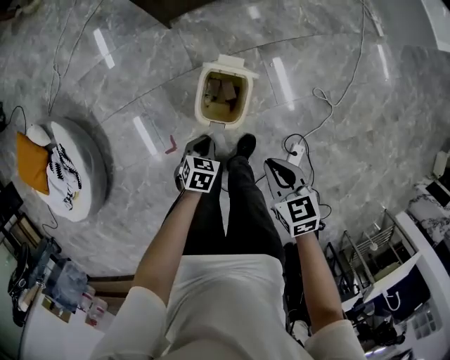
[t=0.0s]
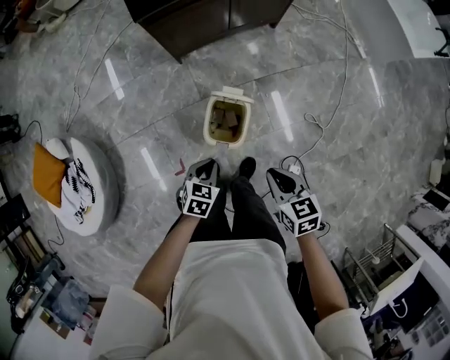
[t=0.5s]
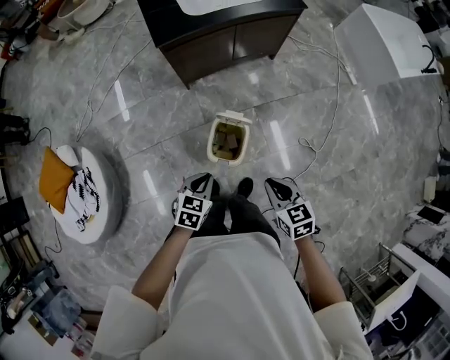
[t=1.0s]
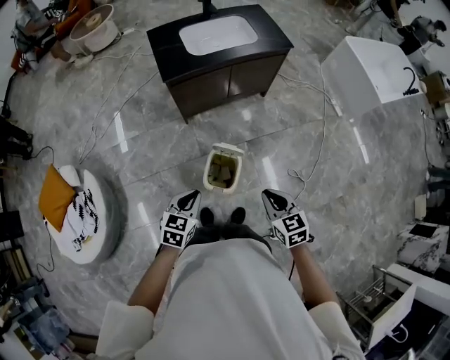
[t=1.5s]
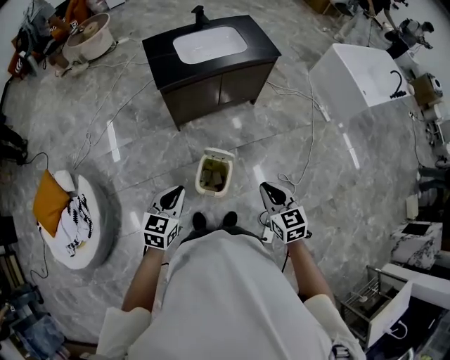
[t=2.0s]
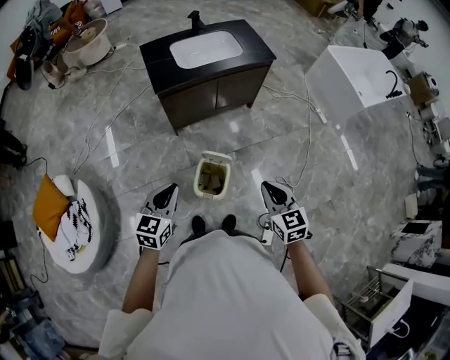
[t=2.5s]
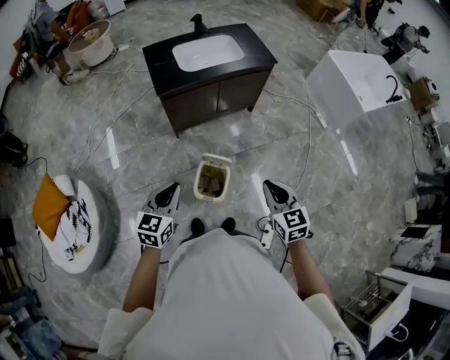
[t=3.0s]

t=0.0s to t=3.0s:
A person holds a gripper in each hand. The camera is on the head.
t=0.0s to t=1.5s: The right gripper shifts about 20 cm upward, while the left gripper goes approximately 35 cm upward, and rotates approximately 30 degrees.
t=1.5s to t=3.0s: Both grippers travel together upward, roughly 10 cm.

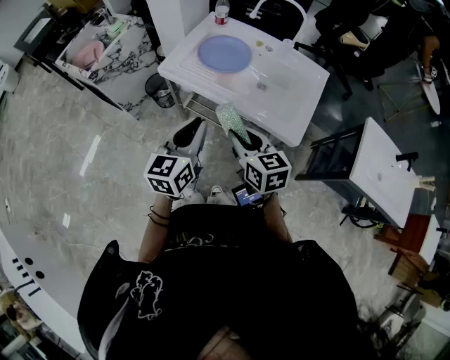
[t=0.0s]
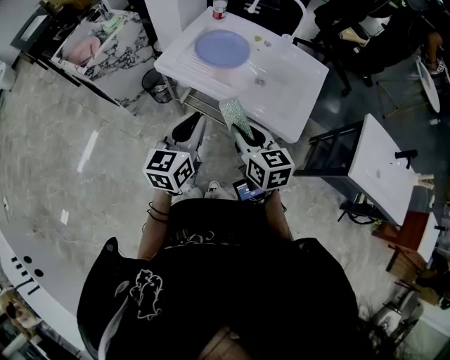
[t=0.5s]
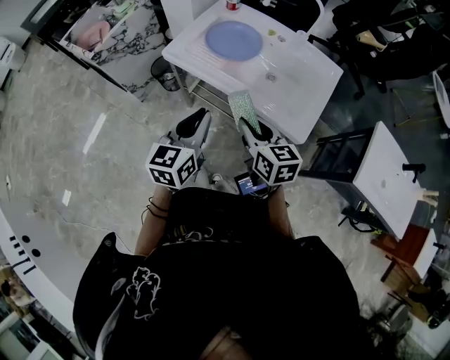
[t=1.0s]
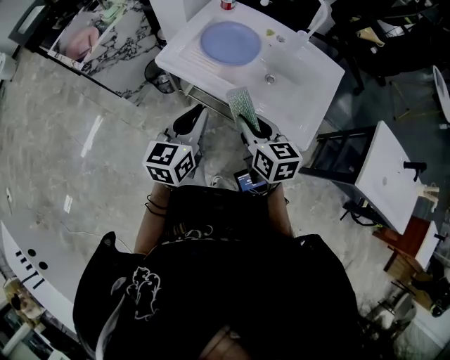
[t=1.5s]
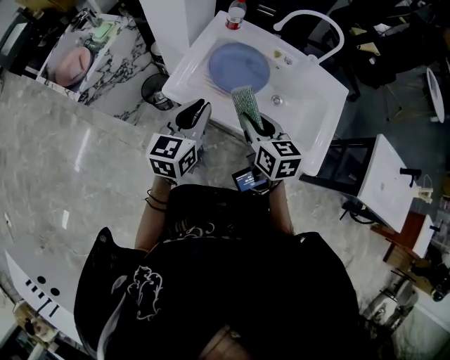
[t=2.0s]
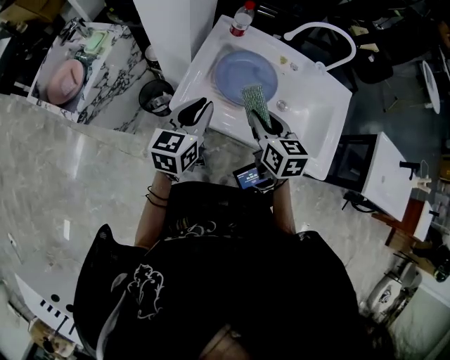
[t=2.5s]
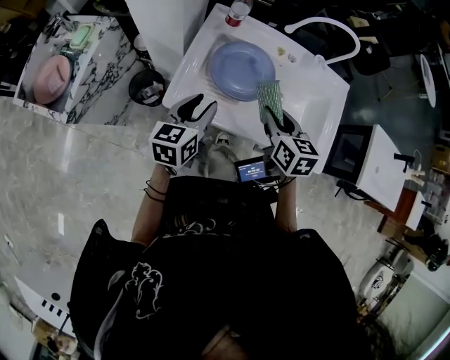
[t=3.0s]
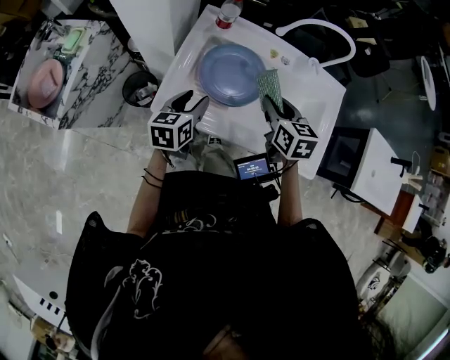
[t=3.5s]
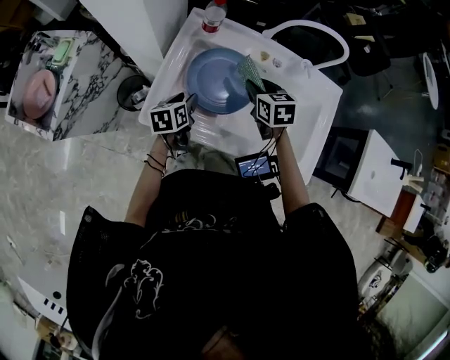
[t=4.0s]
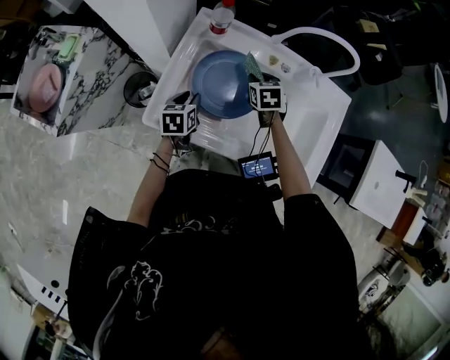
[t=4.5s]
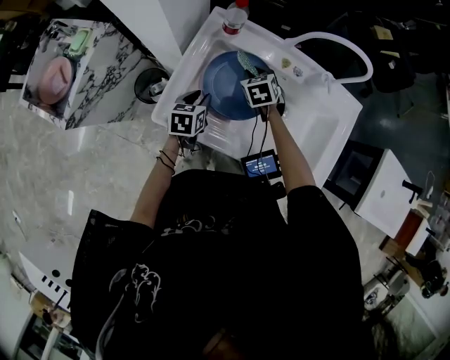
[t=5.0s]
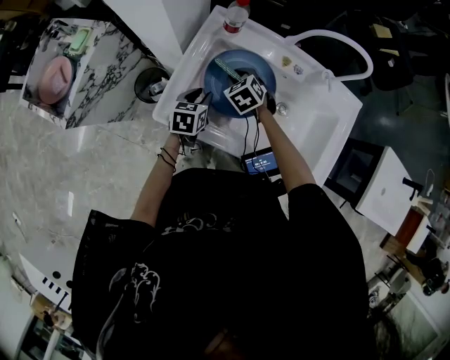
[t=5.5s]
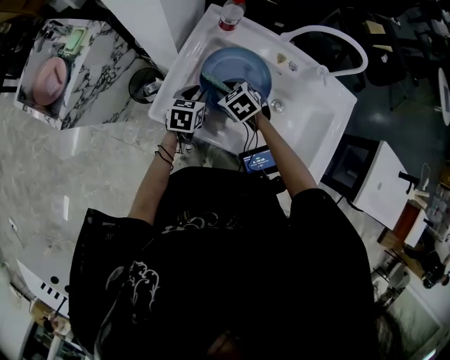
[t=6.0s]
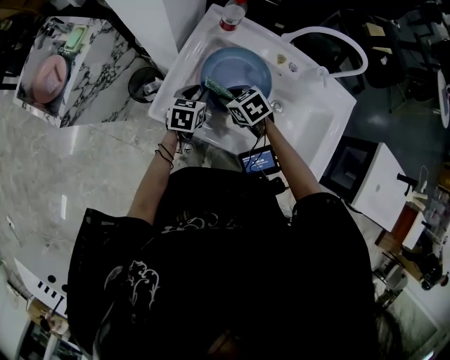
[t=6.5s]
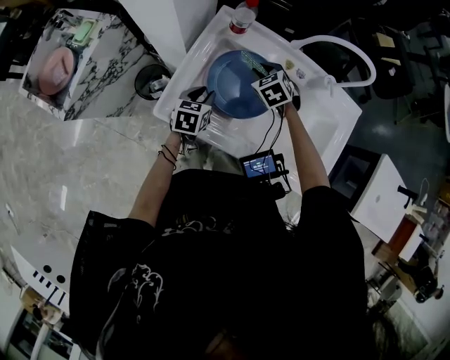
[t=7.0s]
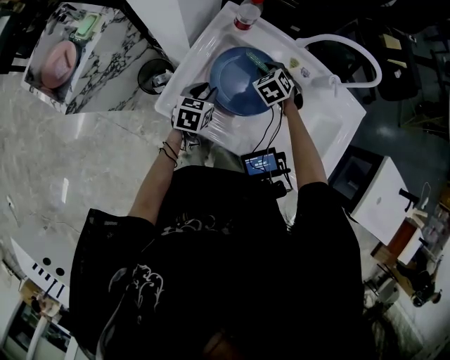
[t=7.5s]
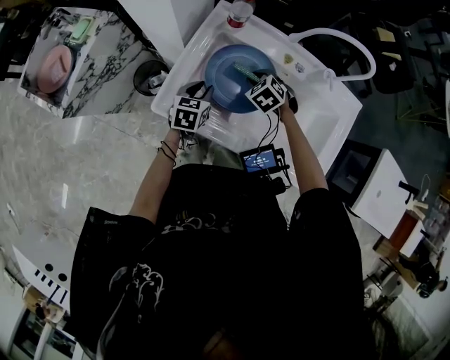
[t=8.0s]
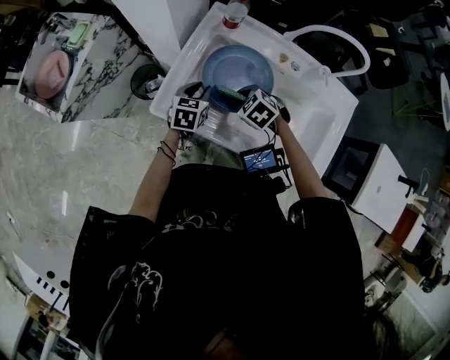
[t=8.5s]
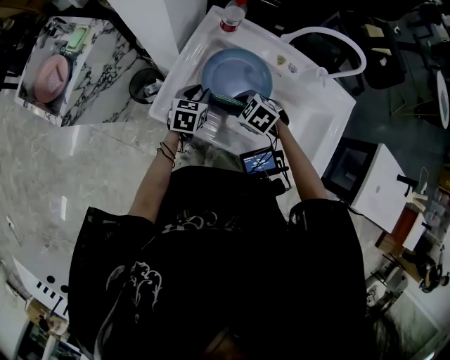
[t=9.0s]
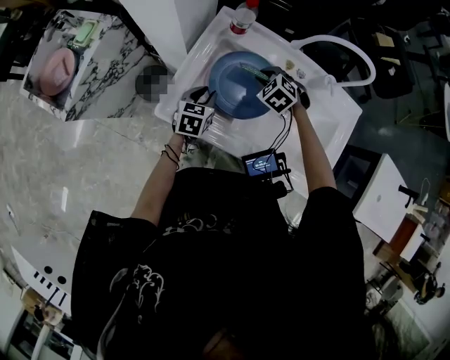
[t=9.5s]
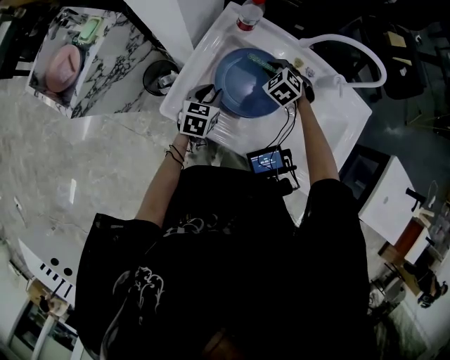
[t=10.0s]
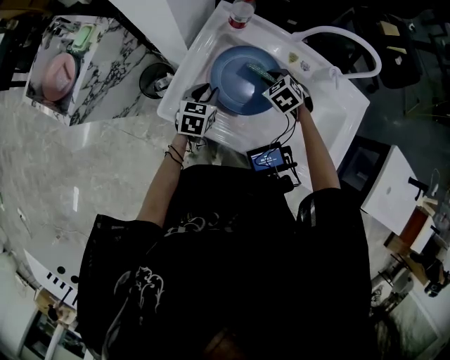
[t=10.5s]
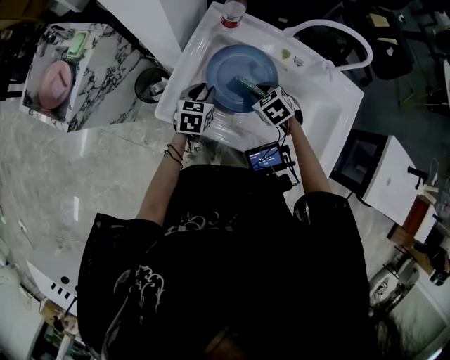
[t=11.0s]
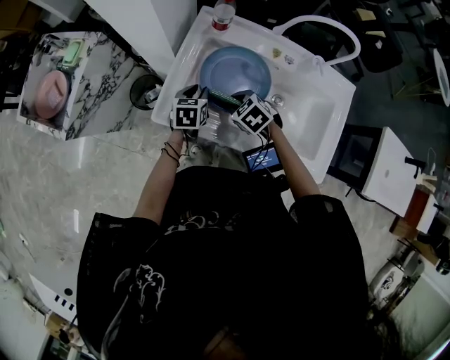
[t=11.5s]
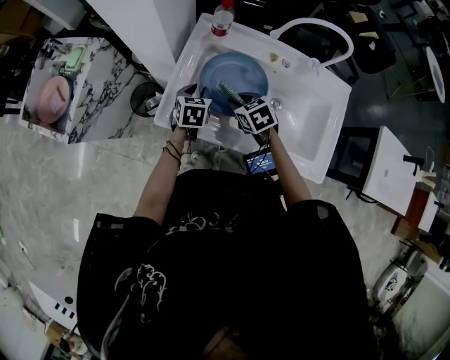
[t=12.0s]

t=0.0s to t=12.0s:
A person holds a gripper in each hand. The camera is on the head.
t=0.0s to t=2.0s: Both grippers move forward, approximately 20 cm.
t=2.0s to t=4.0s: The left gripper shifts some 30 cm downward and forward, rotates roughly 30 degrees, and opens; the right gripper heads forward and downward, covering approximately 25 cm.
t=4.0s to t=6.0s: The right gripper travels to the left and downward by about 15 cm, and turns by some 40 degrees.
t=6.0s to t=8.0s: The right gripper goes approximately 10 cm to the right, and reaches roughly 10 cm forward, then returns.
t=8.0s to t=10.0s: The right gripper heads forward, covering roughly 5 cm.
t=10.0s to t=12.0s: The right gripper moves backward and to the left, about 15 cm, and turns by some 40 degrees.

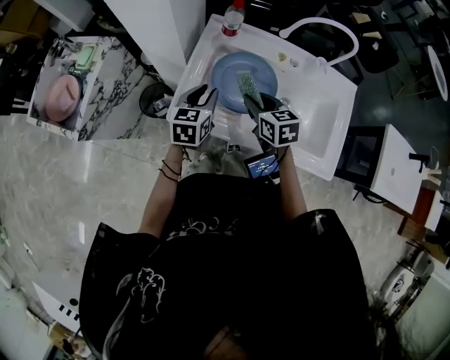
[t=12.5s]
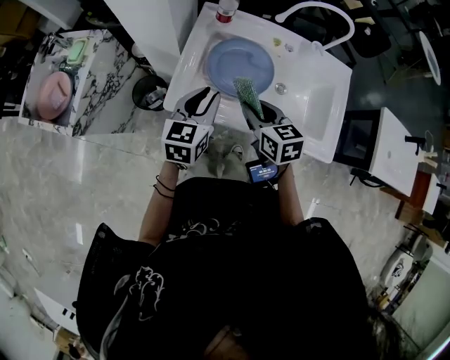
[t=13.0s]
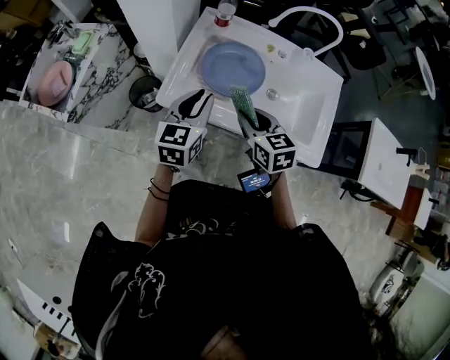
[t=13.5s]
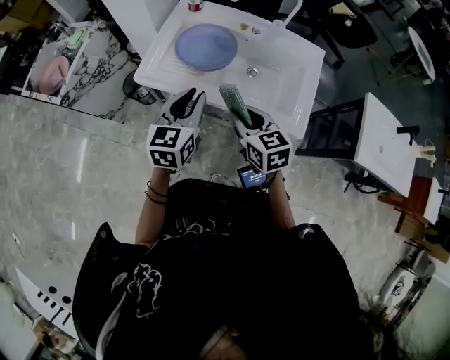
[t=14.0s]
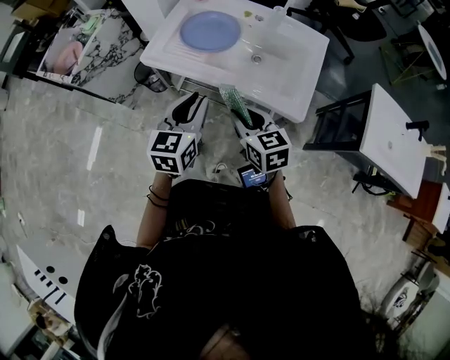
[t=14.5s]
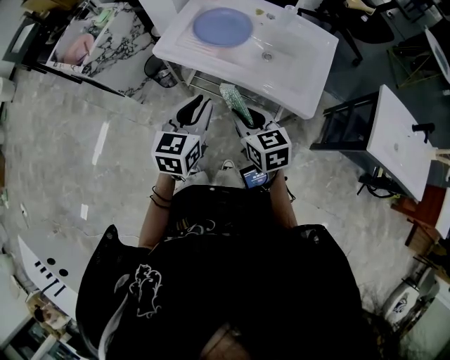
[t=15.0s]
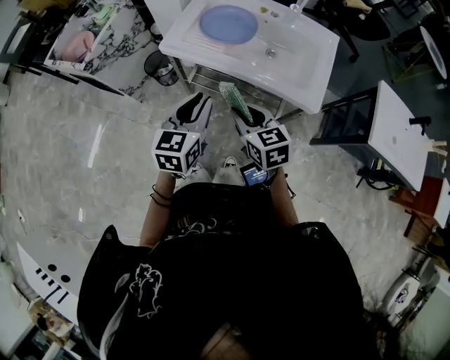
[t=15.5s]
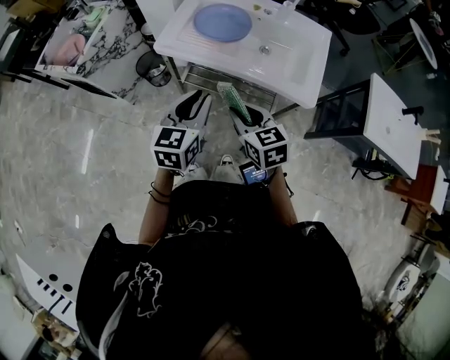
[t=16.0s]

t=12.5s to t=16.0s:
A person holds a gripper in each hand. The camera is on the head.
t=12.5s to t=14.5s: The right gripper heads backward, covering roughly 30 cm; the left gripper is displaced backward and to the right by some 35 cm.
t=14.5s to t=16.0s: Both grippers move to the left, some 10 cm.

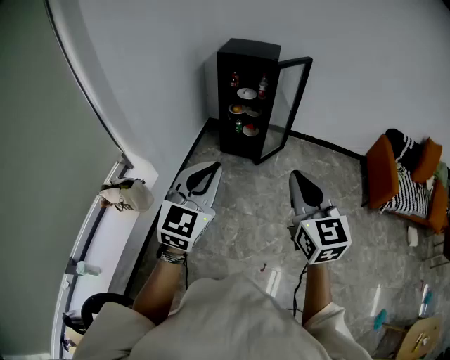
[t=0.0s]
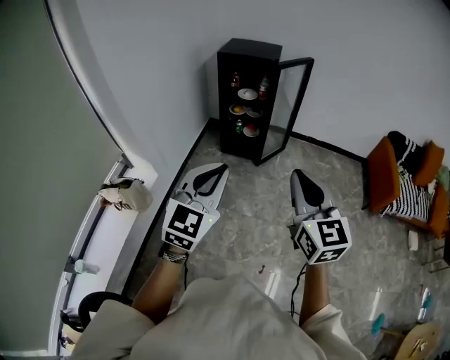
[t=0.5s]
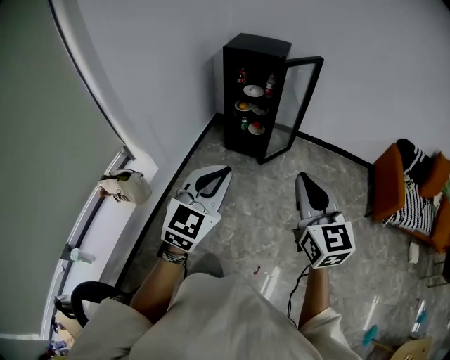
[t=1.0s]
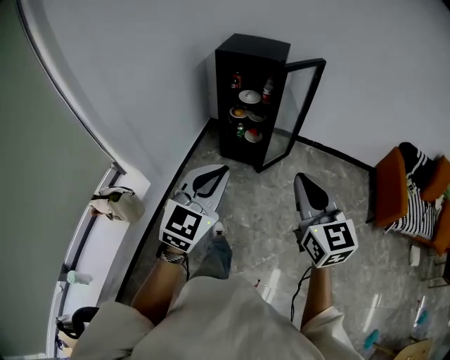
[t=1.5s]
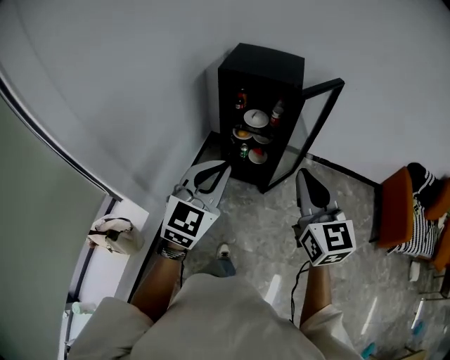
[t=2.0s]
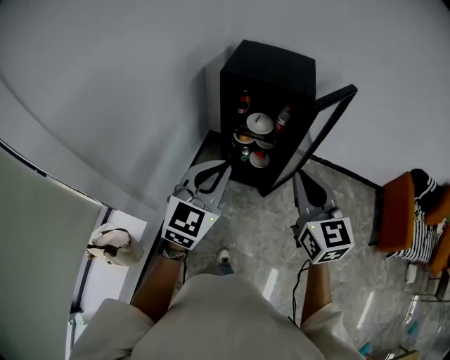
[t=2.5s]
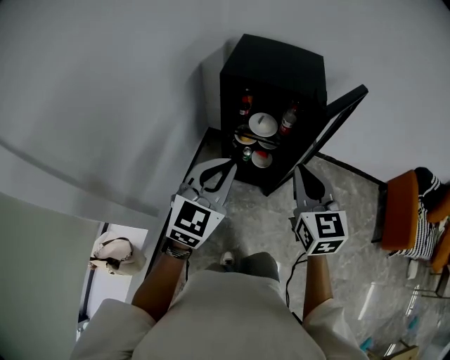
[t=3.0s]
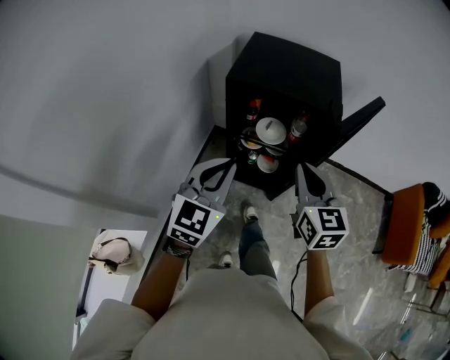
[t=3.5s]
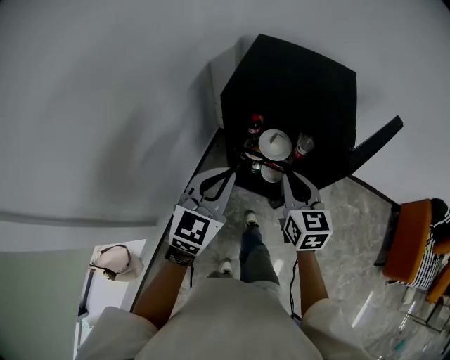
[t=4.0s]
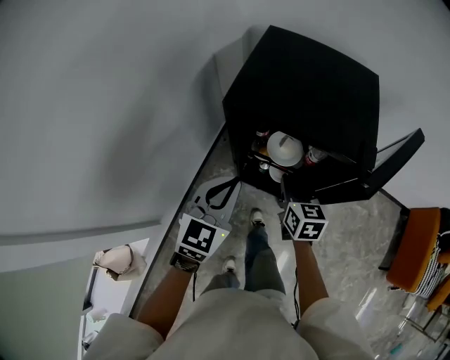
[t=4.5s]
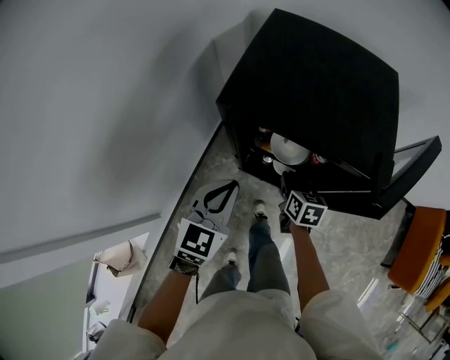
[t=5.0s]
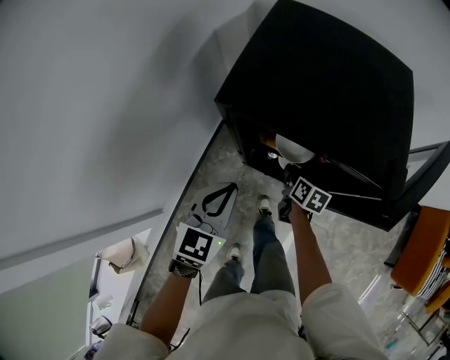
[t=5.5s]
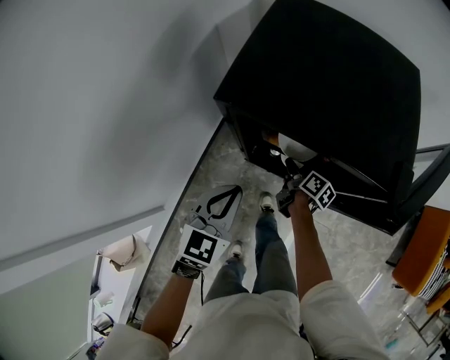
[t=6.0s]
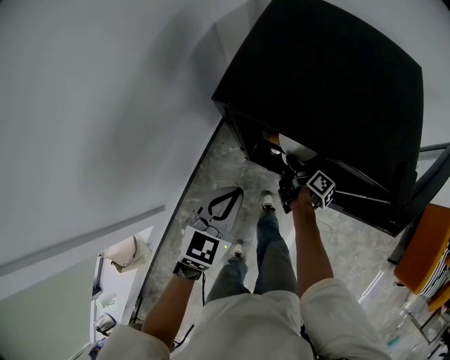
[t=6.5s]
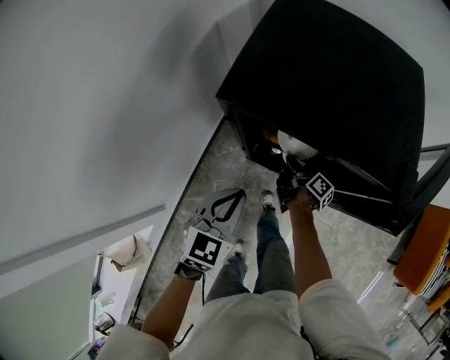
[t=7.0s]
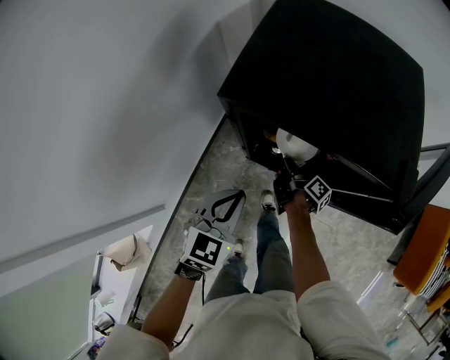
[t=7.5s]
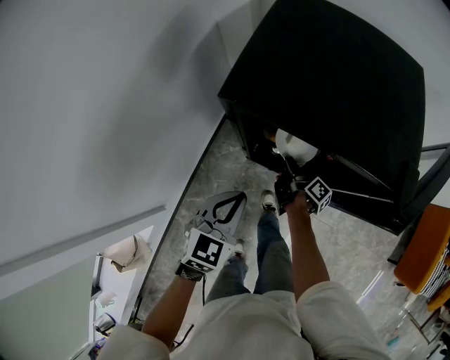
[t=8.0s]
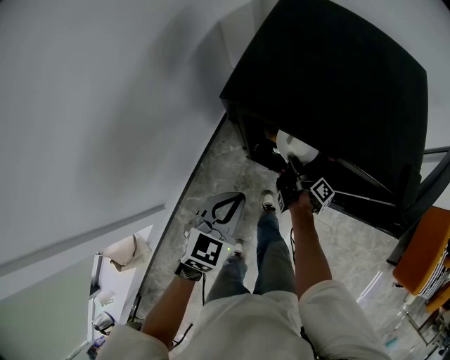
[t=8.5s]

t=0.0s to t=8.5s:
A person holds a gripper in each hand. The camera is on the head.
t=0.0s to t=2.0s: The grippers both shift forward by some 35 cm.
t=2.0s to t=4.0s: The left gripper shifts approximately 35 cm forward, while the right gripper heads forward and downward, covering some 40 cm, and swivels about 20 degrees.
t=4.0s to t=6.5s: The right gripper shifts about 35 cm downward and forward, and rolls clockwise, seen from behind, by roughly 80 degrees, while the left gripper travels downward by about 15 cm.
t=6.5s to t=8.5s: The grippers make only small movements.
